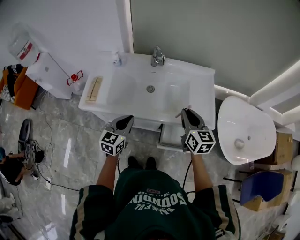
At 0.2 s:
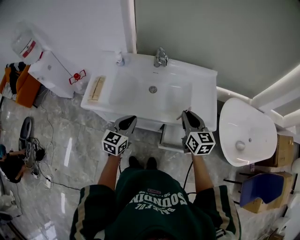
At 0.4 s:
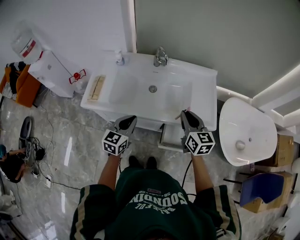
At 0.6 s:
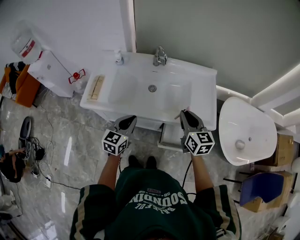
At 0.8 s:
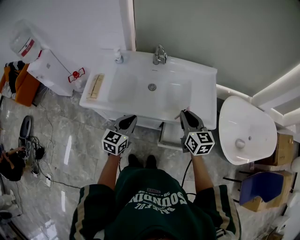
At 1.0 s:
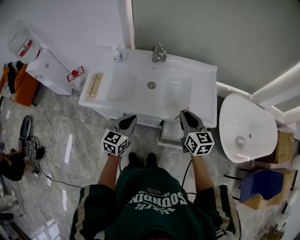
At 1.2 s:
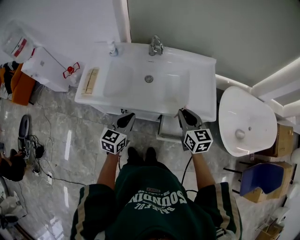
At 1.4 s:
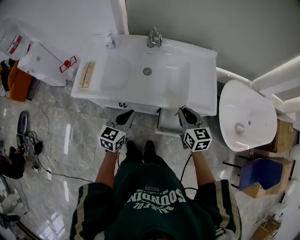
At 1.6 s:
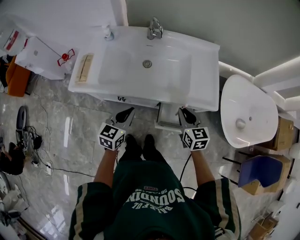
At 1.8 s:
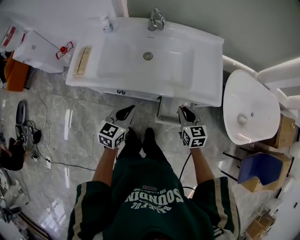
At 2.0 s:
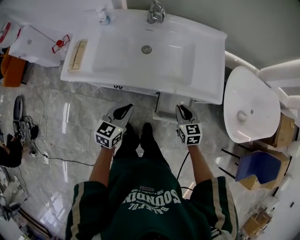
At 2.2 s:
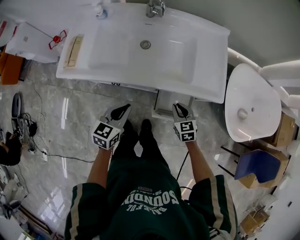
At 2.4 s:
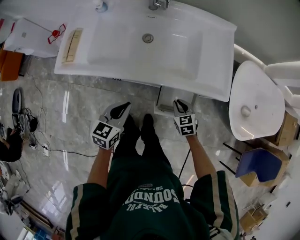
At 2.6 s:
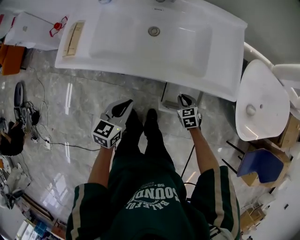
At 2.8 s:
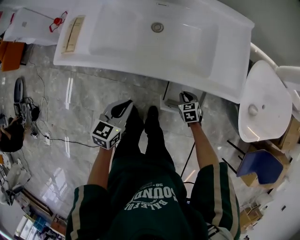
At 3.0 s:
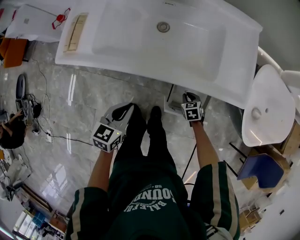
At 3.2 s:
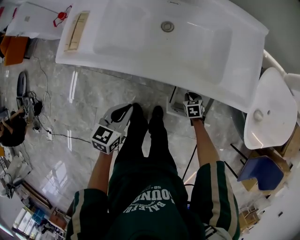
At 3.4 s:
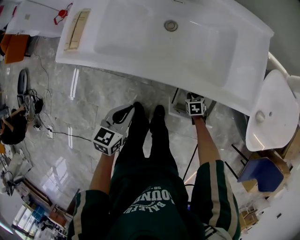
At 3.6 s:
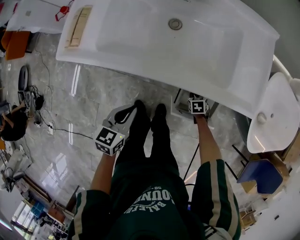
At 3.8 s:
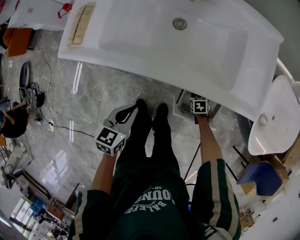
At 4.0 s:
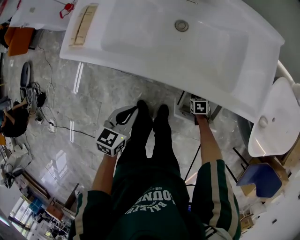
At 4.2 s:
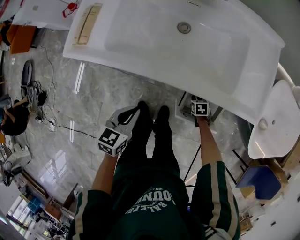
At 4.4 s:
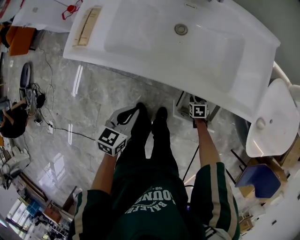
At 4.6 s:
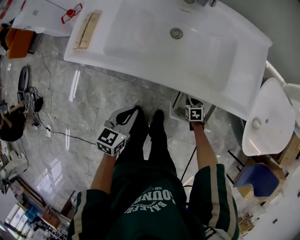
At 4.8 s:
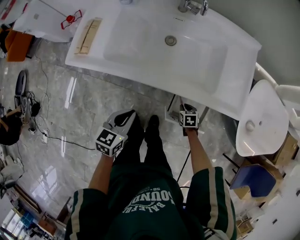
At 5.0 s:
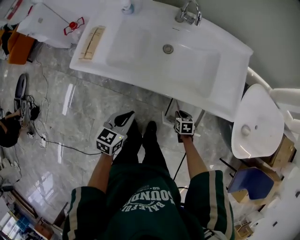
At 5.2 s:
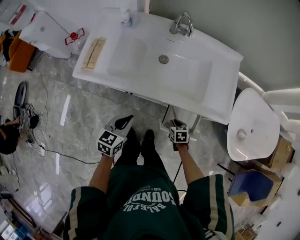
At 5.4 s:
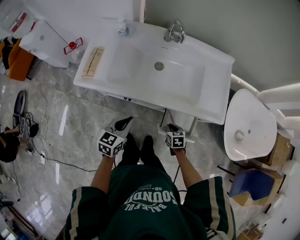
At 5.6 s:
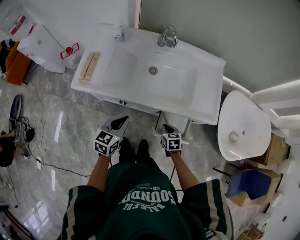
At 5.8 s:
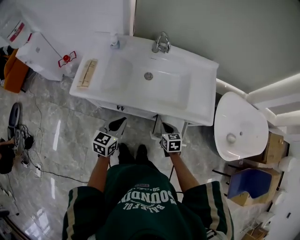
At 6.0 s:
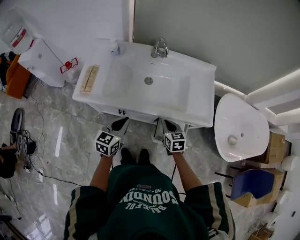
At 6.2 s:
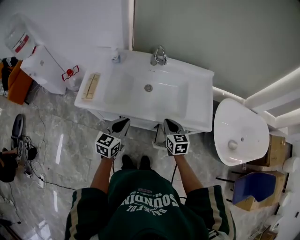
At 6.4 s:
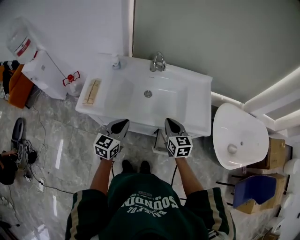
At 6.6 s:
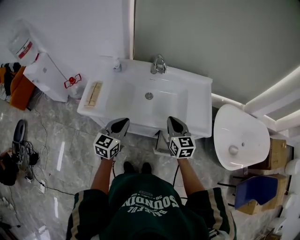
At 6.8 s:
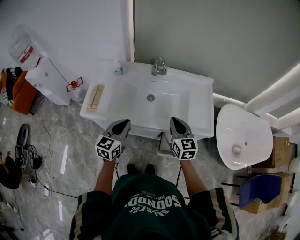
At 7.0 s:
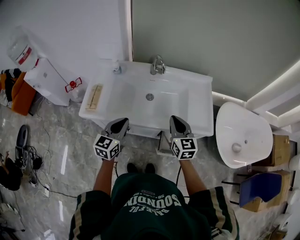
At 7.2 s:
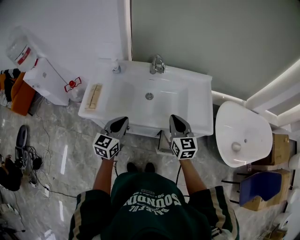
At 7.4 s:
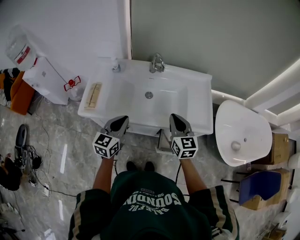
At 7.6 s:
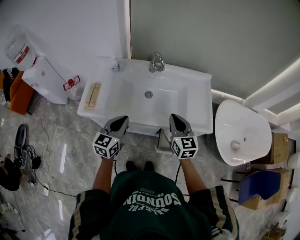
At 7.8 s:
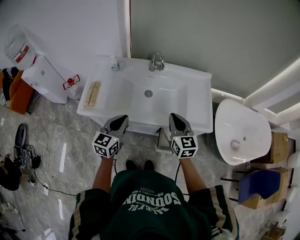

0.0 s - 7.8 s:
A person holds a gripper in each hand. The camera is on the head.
0.0 s - 1.6 s: The right gripper moves downward, roughly 15 cm; the left gripper goes approximately 5 cm downward.
1.6 s - 3.2 s: The right gripper heads downward, covering roughly 40 cm, and points its fingers about 40 degrees further downward, while the left gripper is displaced downward by some 15 cm.
3.2 s - 4.6 s: The grippers stay close to where they were, moving slightly.
4.6 s - 6.2 s: The left gripper shifts about 15 cm upward. Meanwhile the right gripper goes some 40 cm upward, and points its fingers about 40 degrees further upward.
6.2 s - 7.8 s: The left gripper goes about 5 cm upward; the right gripper moves upward, about 10 cm.

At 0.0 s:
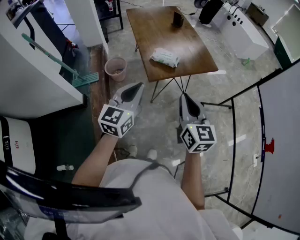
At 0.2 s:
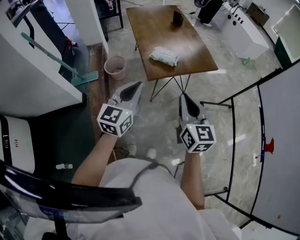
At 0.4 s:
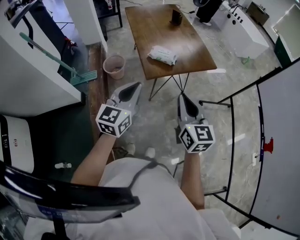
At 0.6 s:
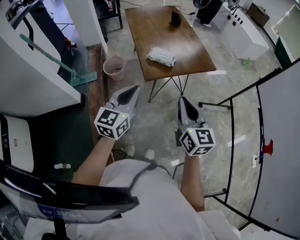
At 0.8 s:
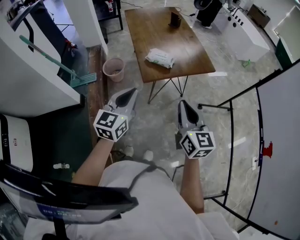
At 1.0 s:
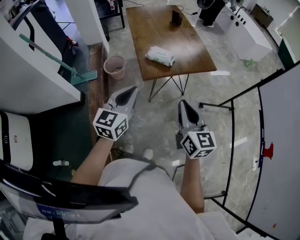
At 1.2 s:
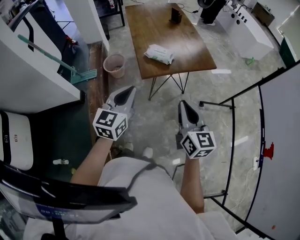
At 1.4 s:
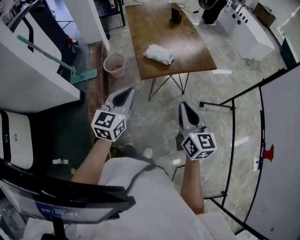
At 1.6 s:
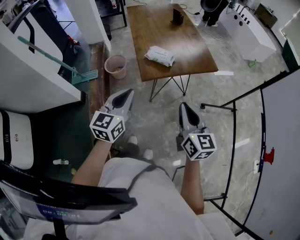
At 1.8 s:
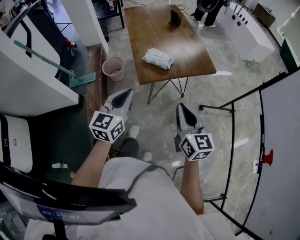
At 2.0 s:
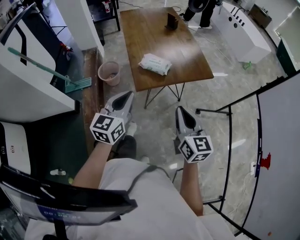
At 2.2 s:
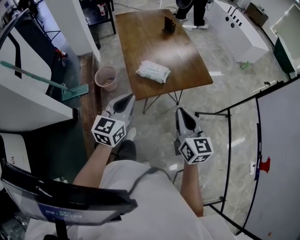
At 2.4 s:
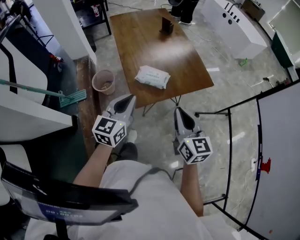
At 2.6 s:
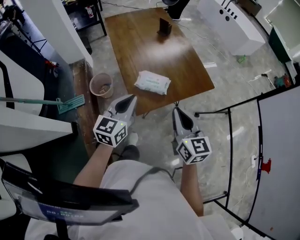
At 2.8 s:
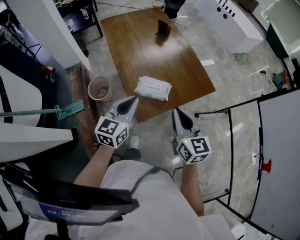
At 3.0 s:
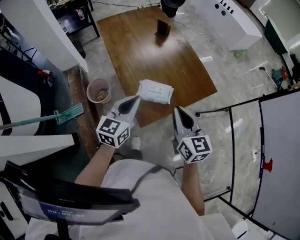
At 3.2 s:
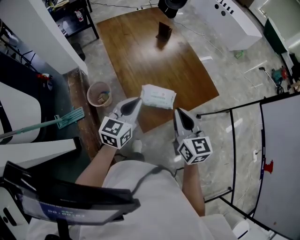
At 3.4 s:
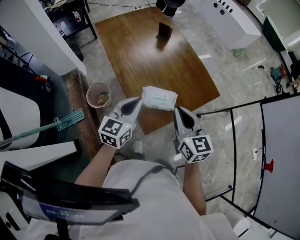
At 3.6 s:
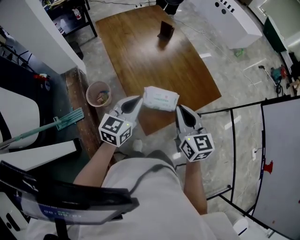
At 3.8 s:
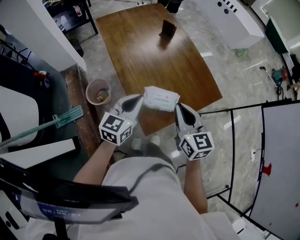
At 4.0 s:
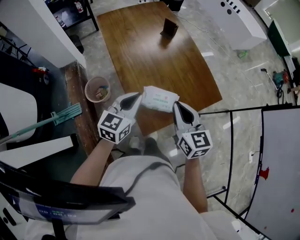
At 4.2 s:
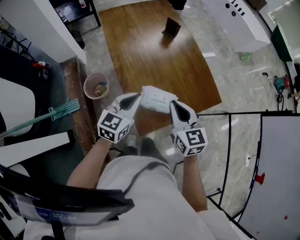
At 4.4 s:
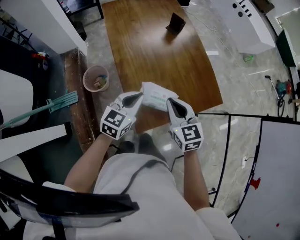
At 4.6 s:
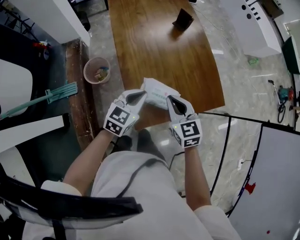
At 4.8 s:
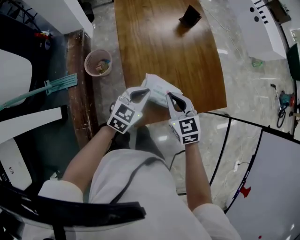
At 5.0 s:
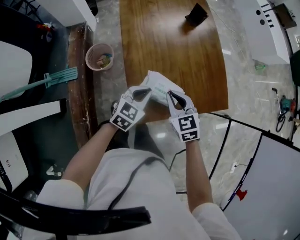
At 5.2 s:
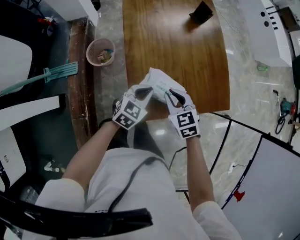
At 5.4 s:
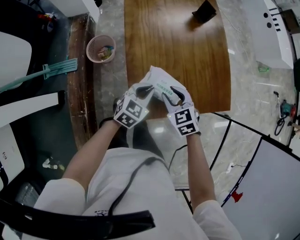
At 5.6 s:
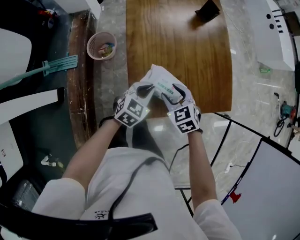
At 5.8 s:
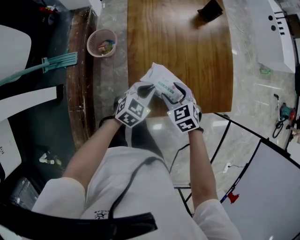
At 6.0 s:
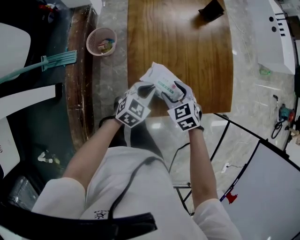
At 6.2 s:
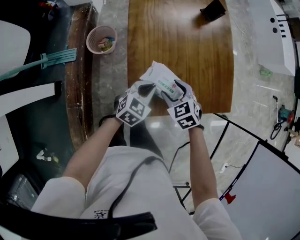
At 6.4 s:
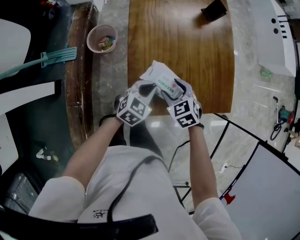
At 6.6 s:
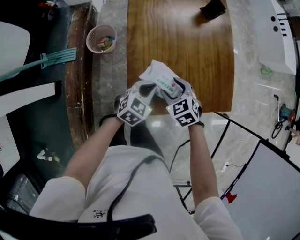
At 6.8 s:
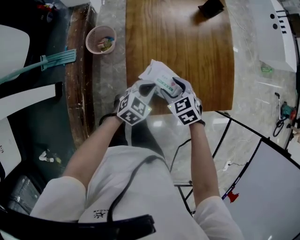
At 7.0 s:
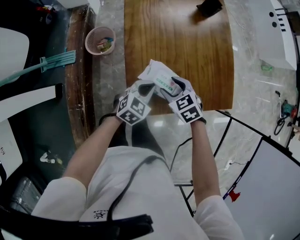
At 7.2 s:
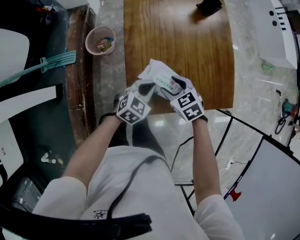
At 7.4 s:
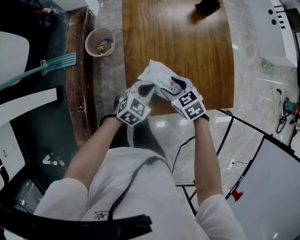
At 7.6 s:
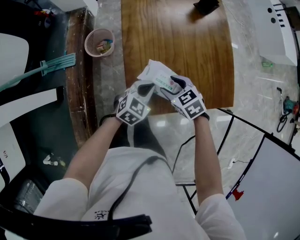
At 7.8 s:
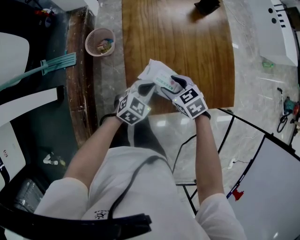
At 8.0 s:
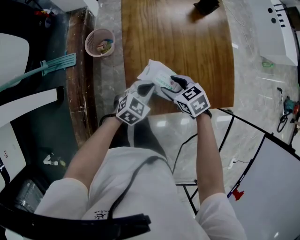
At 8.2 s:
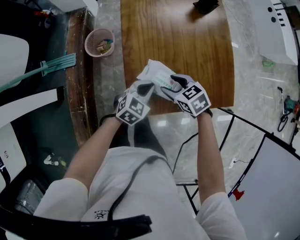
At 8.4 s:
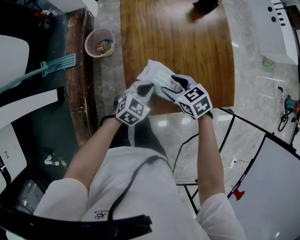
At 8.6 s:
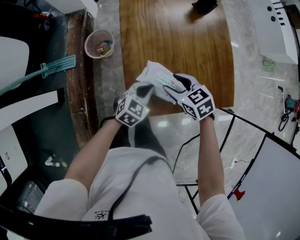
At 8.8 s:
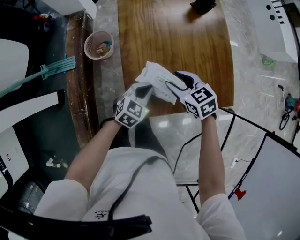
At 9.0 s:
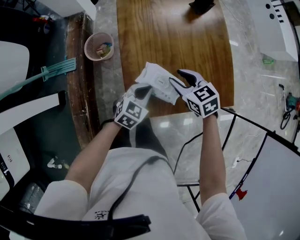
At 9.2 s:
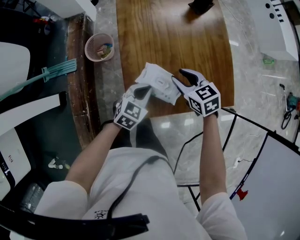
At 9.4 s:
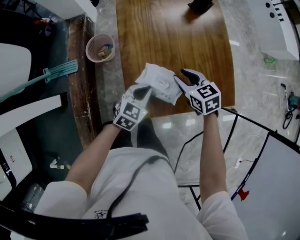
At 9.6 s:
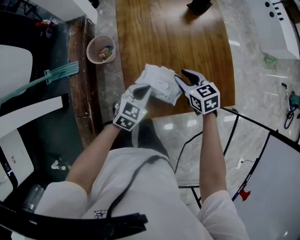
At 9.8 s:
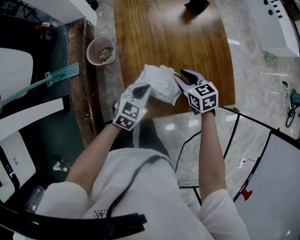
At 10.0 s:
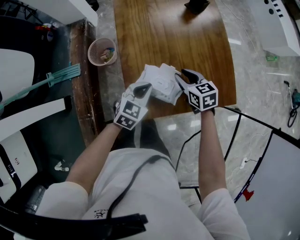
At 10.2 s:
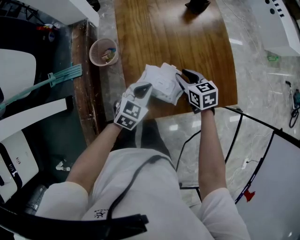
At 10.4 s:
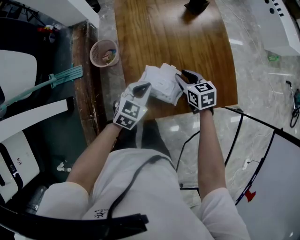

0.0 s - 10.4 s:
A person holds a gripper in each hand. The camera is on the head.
0.0 s - 1.4 s: The right gripper travels to the right by roughly 10 cm. Meanwhile the left gripper ends up roughly 5 cm from where it was.
1.4 s - 3.0 s: The grippers both shift forward by roughly 30 cm.
3.0 s - 4.4 s: The left gripper travels forward and downward by about 10 cm; the right gripper moves forward, downward and to the left, roughly 15 cm, and rotates about 20 degrees.
4.4 s - 6.0 s: Both grippers travel together downward, approximately 15 cm. The right gripper turns by approximately 40 degrees, and opens up.
6.0 s - 7.4 s: The grippers make only small movements.
7.4 s - 9.0 s: The right gripper is displaced upward by approximately 5 cm.
9.0 s - 10.4 s: The right gripper ends up roughly 5 cm from where it was.

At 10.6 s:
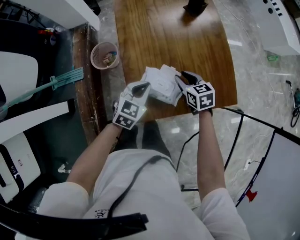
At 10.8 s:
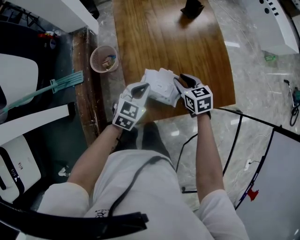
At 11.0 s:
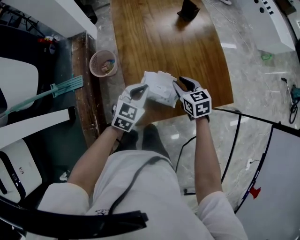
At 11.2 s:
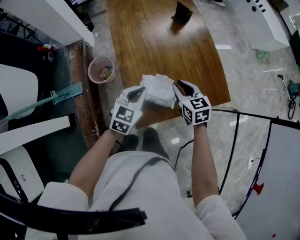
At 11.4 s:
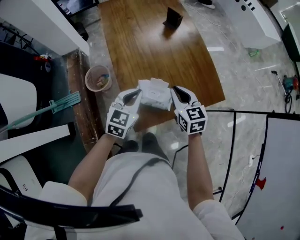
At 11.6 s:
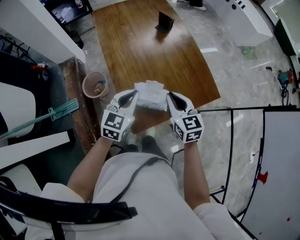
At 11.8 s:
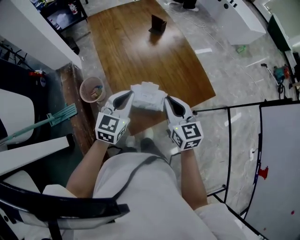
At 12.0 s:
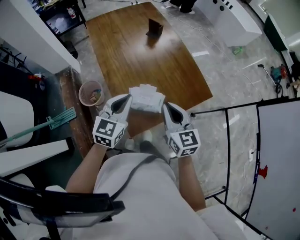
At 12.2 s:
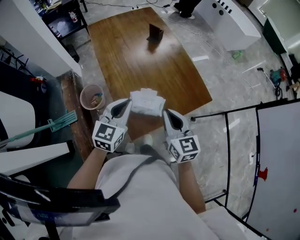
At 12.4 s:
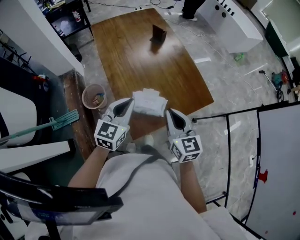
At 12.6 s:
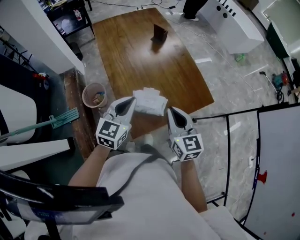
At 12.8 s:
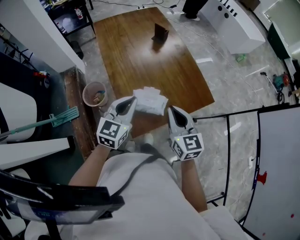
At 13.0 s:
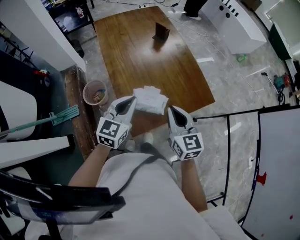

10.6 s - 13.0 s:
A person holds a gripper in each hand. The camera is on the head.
10.6 s - 11.8 s: The left gripper shifts roughly 15 cm upward, while the right gripper is displaced upward and backward by approximately 20 cm, turns by some 30 degrees, and closes its fingers.
11.8 s - 13.0 s: The grippers move only a little.

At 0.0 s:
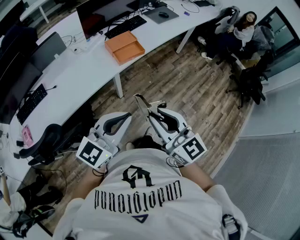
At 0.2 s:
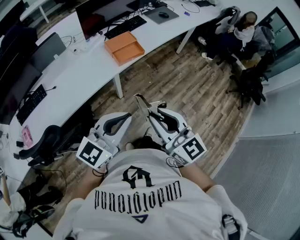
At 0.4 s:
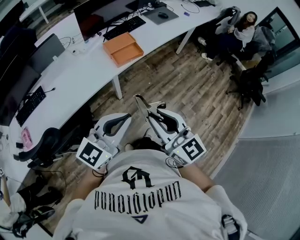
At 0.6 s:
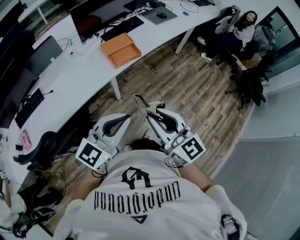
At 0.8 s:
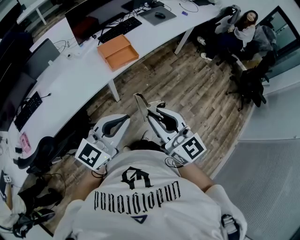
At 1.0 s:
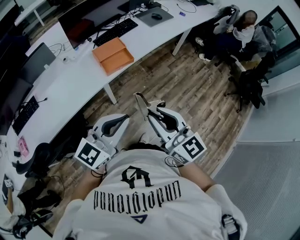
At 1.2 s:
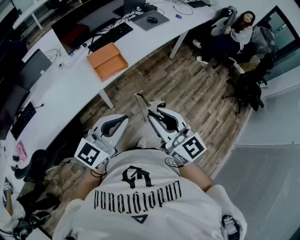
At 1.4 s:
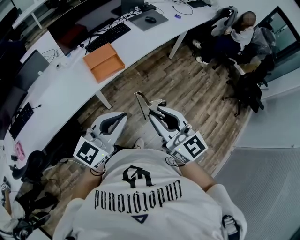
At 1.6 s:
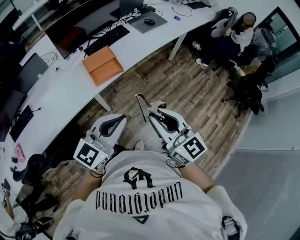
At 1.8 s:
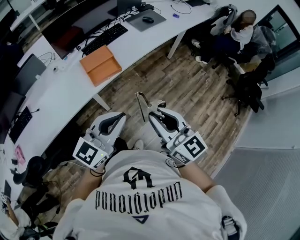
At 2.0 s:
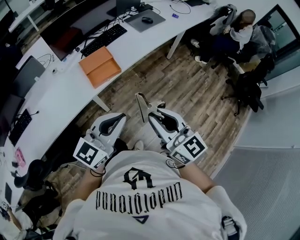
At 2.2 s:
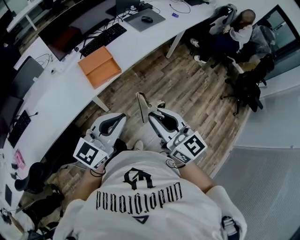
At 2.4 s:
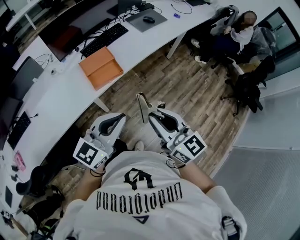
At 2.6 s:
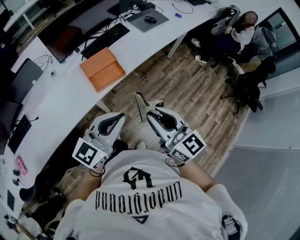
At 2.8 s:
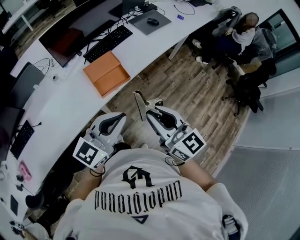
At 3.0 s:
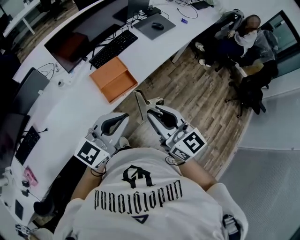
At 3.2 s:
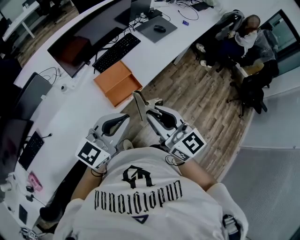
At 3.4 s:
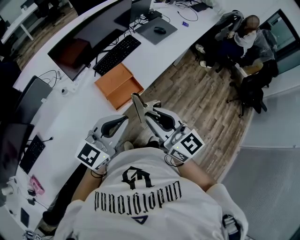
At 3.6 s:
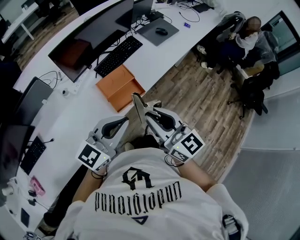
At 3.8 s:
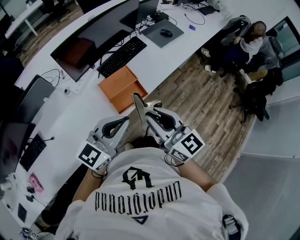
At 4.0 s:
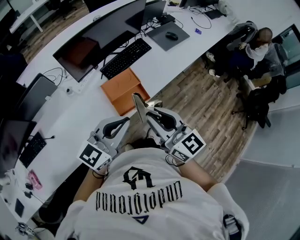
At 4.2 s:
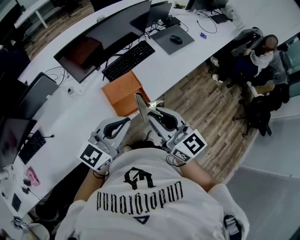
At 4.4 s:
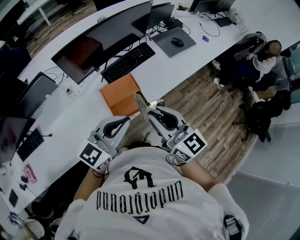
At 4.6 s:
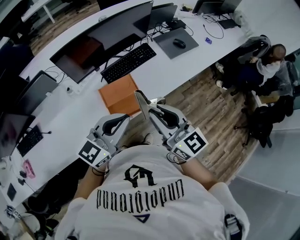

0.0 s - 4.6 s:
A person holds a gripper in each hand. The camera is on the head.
0.0 s - 1.6 s: Both grippers travel together forward and to the right, about 25 cm.
1.6 s - 3.0 s: Both grippers travel together forward and to the left, about 20 cm.
3.0 s - 4.6 s: Both grippers travel together forward, some 15 cm.
